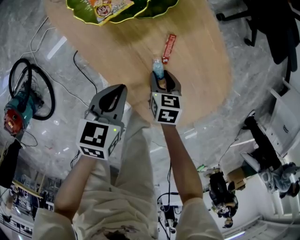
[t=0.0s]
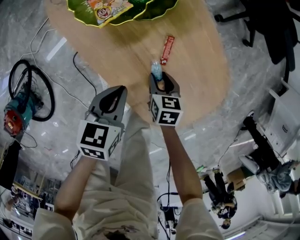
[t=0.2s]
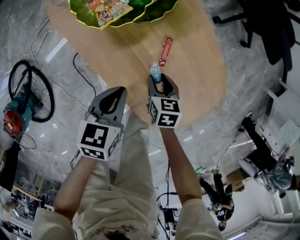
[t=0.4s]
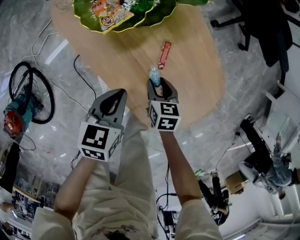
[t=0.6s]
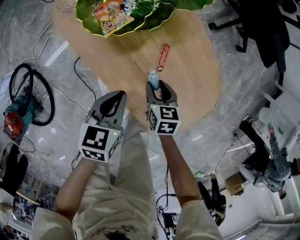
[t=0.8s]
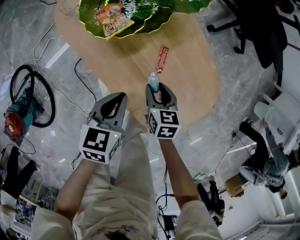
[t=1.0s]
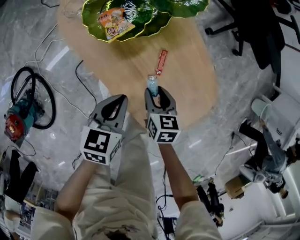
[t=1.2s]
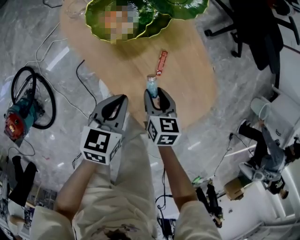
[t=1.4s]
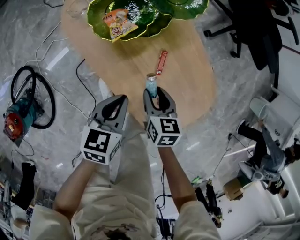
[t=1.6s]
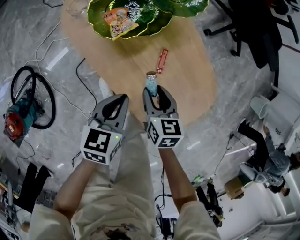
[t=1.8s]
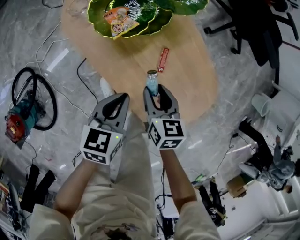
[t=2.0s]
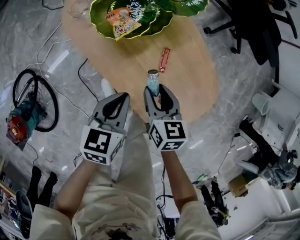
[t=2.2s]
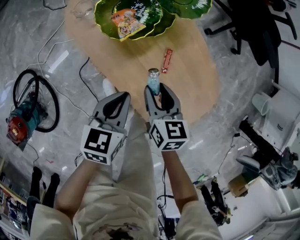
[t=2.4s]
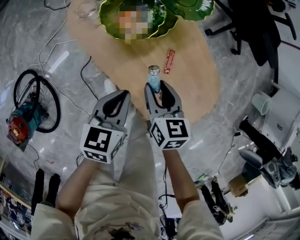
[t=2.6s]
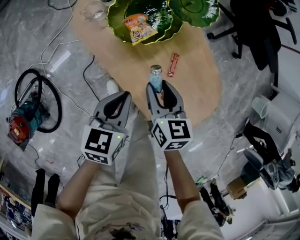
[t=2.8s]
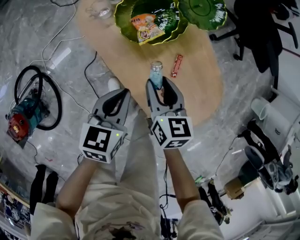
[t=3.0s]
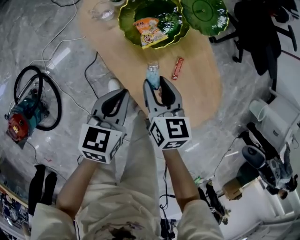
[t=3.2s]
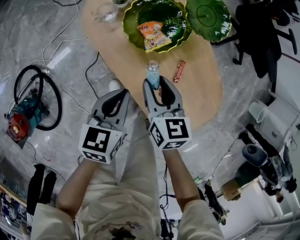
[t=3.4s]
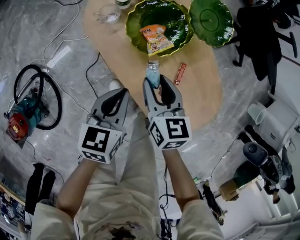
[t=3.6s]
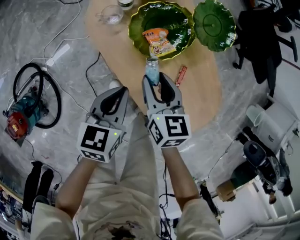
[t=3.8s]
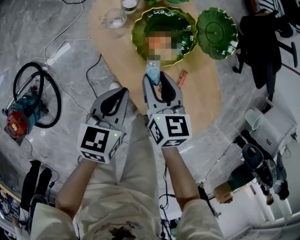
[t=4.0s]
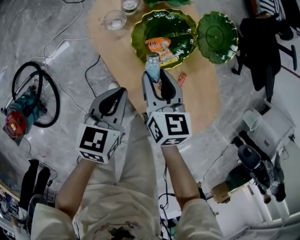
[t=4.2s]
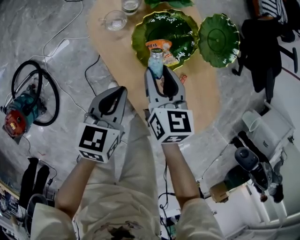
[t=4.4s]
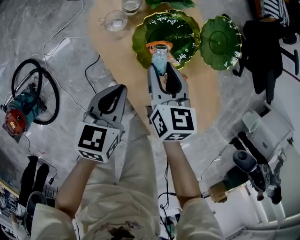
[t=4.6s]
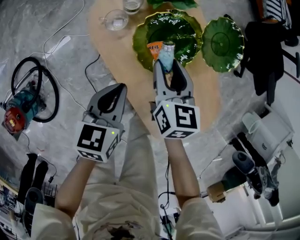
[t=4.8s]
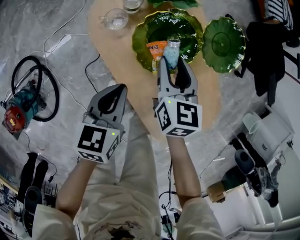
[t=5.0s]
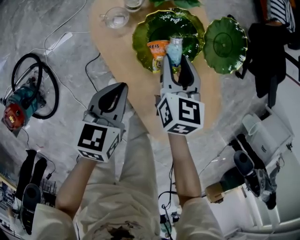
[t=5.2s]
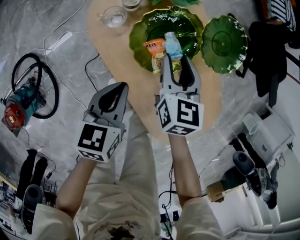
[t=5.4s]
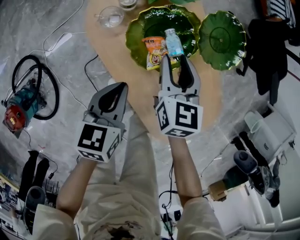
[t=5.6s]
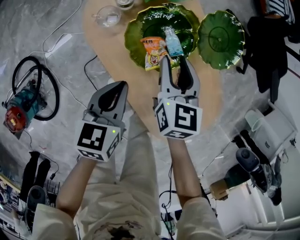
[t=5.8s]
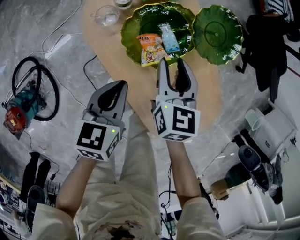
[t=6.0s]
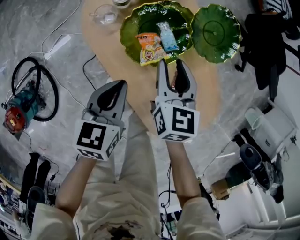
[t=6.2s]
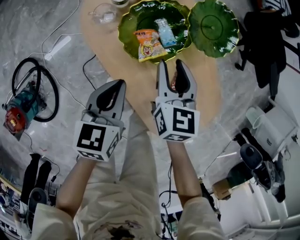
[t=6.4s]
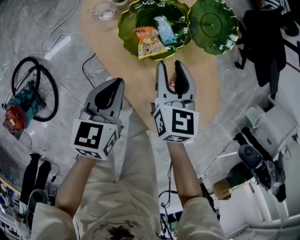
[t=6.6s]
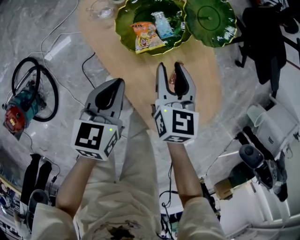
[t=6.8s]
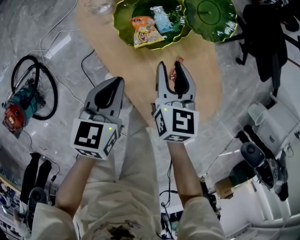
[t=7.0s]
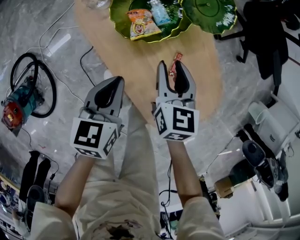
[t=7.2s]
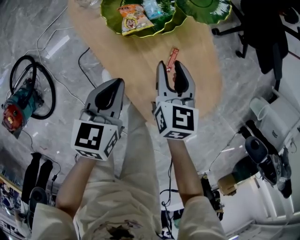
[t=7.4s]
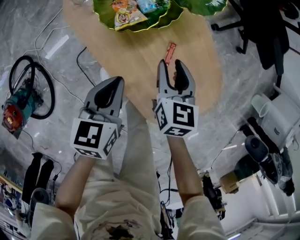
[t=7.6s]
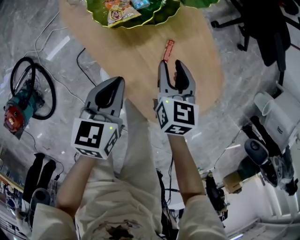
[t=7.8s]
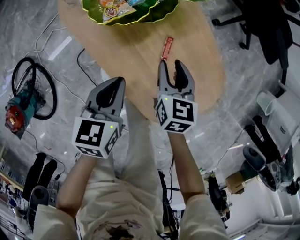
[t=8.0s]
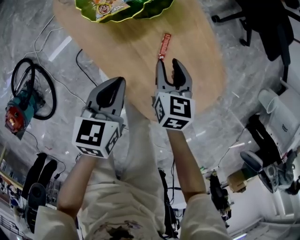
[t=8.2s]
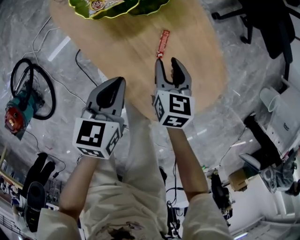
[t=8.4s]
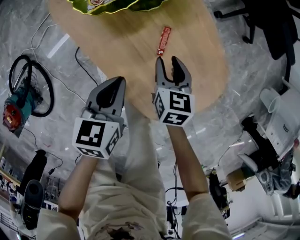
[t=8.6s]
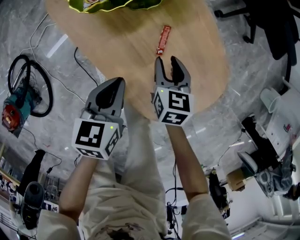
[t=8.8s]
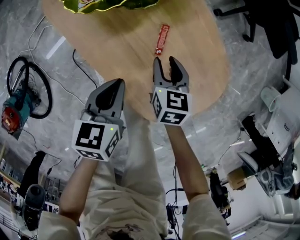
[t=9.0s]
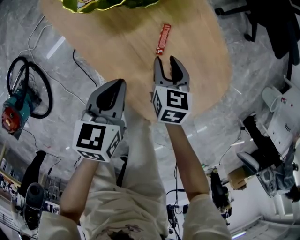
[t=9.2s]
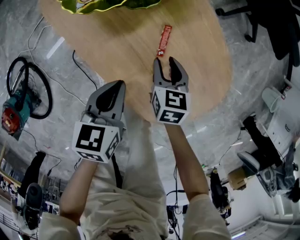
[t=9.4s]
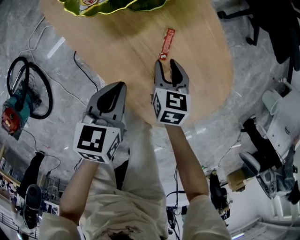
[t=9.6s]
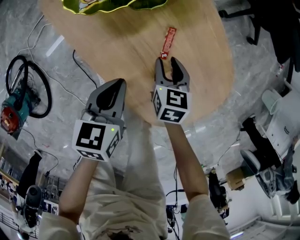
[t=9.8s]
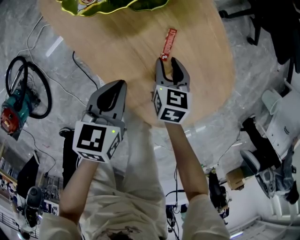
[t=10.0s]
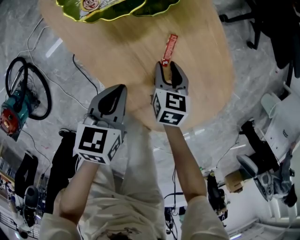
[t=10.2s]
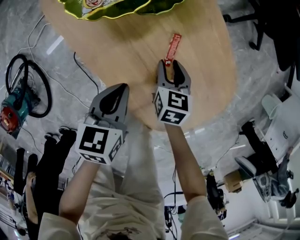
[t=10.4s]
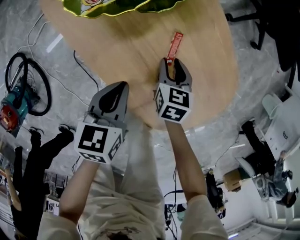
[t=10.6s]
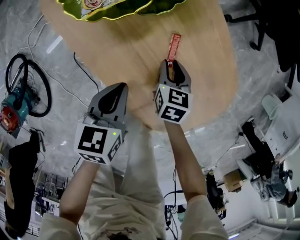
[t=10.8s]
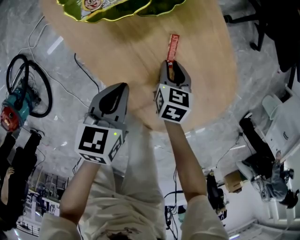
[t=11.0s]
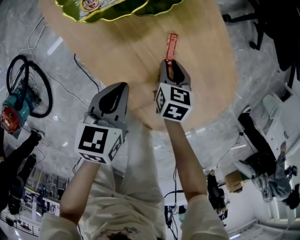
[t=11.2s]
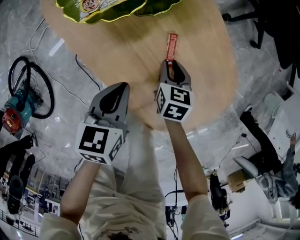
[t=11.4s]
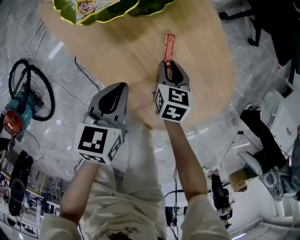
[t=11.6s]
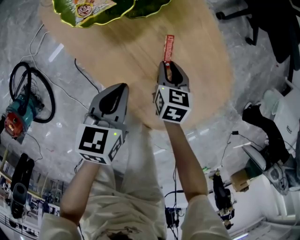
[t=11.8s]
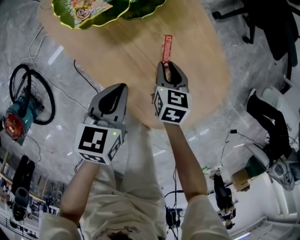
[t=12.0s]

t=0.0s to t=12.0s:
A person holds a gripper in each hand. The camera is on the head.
t=0.0s to t=1.6s: The left gripper heads upward, covering roughly 10 cm. Meanwhile the right gripper moves upward, roughly 15 cm.
t=1.6s to t=3.0s: The right gripper is displaced to the left and upward by some 15 cm, while the left gripper shifts about 10 cm to the left.
t=3.0s to t=4.4s: Both grippers move forward and to the left, roughly 10 cm.
t=4.4s to t=6.0s: The right gripper travels to the right by approximately 5 cm.
t=6.0s to t=7.6s: The grippers both shift to the right and backward by roughly 15 cm.
t=7.6s to t=9.0s: The right gripper shifts some 15 cm downward and to the right; the left gripper heads to the right and downward, covering about 10 cm.
t=9.0s to t=10.4s: The right gripper shifts approximately 5 cm downward.
t=10.4s to t=12.0s: The grippers stay close to where they were, moving slightly.

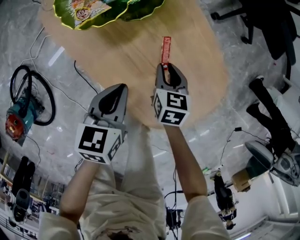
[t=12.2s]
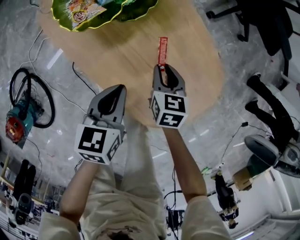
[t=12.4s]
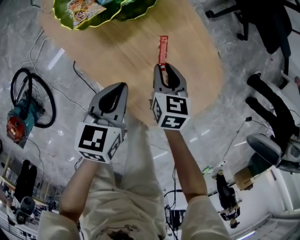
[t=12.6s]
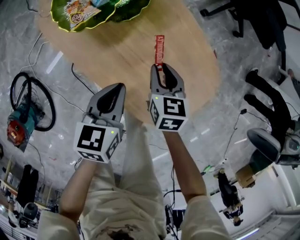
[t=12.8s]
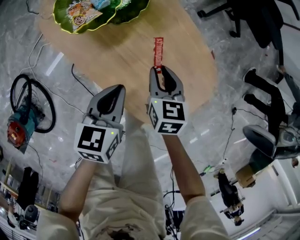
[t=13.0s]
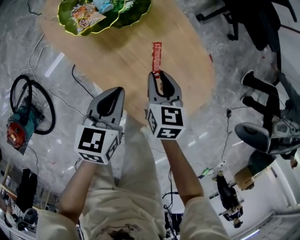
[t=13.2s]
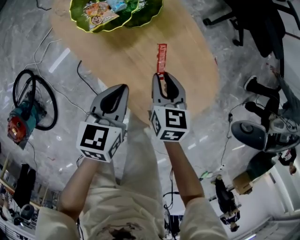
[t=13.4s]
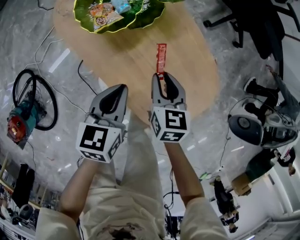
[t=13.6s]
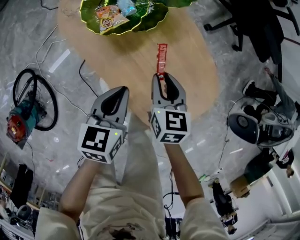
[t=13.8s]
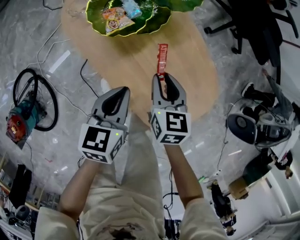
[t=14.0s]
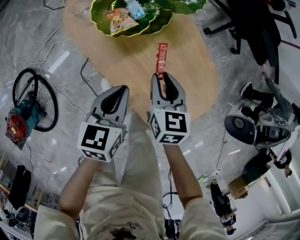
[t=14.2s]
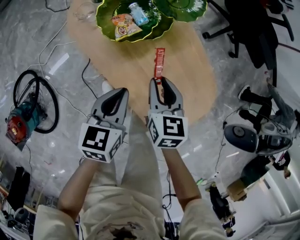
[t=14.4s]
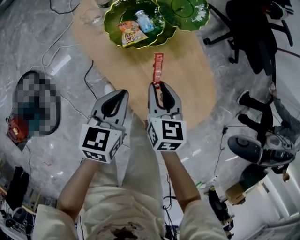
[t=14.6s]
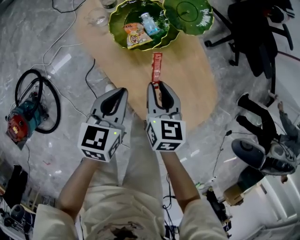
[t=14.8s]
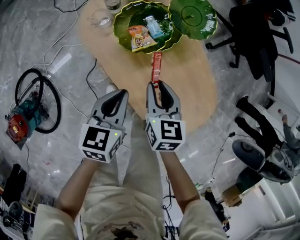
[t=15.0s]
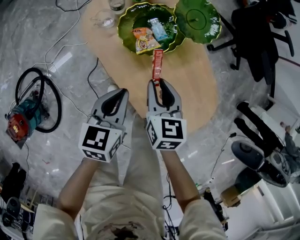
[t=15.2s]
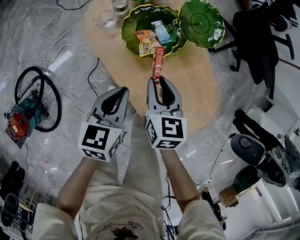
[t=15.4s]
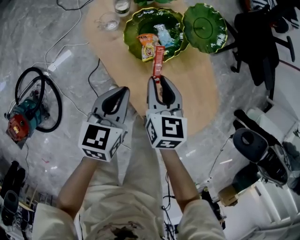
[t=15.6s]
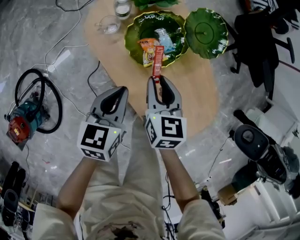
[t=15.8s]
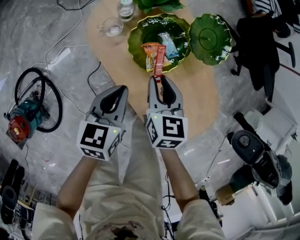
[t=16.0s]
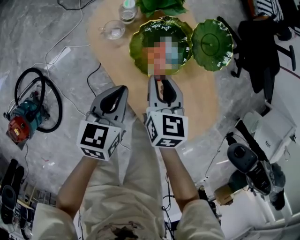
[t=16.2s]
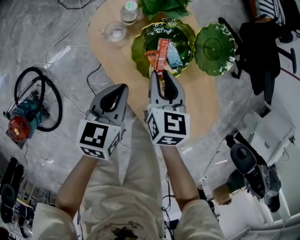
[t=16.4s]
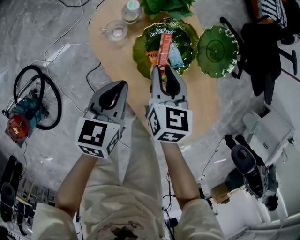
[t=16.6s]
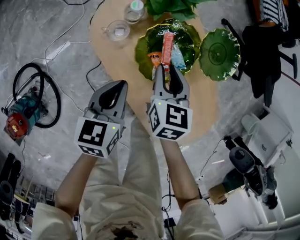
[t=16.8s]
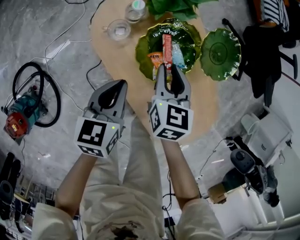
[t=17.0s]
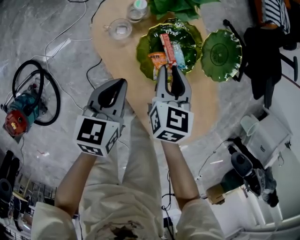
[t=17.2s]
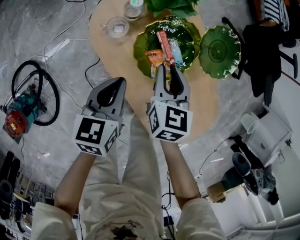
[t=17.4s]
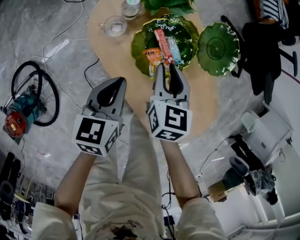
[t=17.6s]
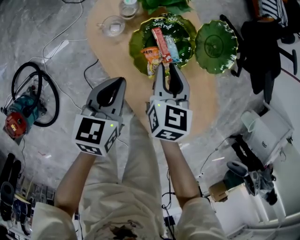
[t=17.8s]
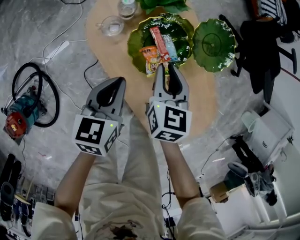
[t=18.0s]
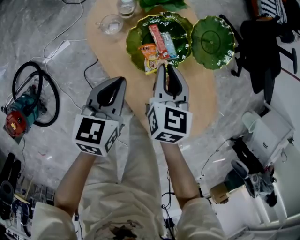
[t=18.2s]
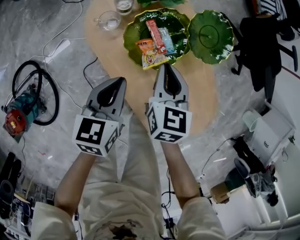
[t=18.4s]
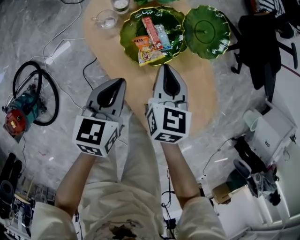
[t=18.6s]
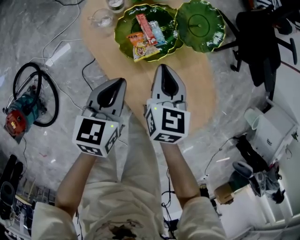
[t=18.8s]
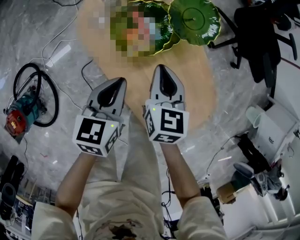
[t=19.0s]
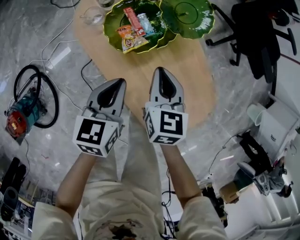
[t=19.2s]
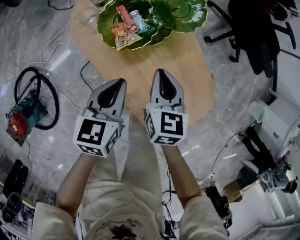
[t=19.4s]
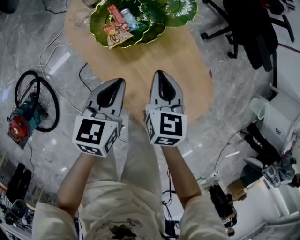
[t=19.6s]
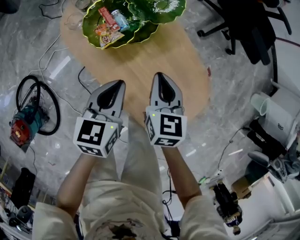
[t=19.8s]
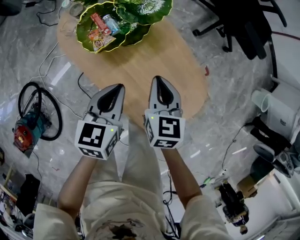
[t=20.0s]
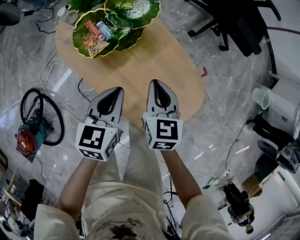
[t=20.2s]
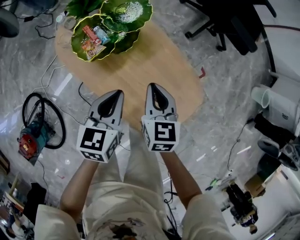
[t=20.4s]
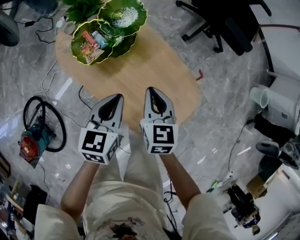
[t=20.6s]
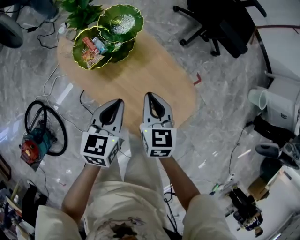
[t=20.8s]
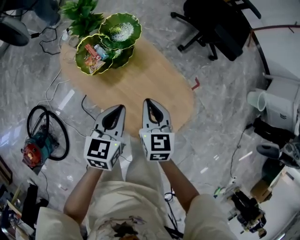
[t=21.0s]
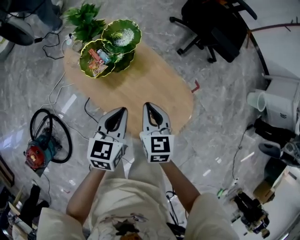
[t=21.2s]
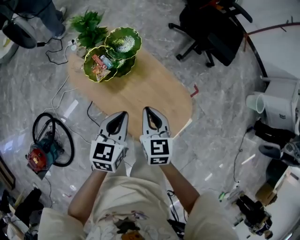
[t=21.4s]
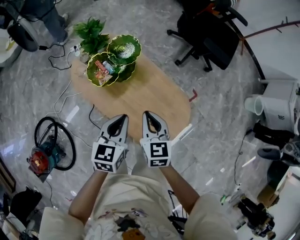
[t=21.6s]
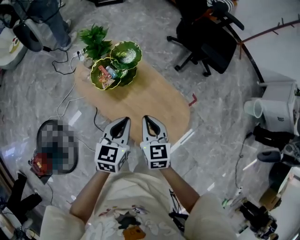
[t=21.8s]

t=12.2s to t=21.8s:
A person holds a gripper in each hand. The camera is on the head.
t=12.2s to t=13.8s: The left gripper moves upward, roughly 5 cm. The right gripper travels upward by some 15 cm.
t=13.8s to t=15.4s: The left gripper shifts roughly 15 cm to the left, while the right gripper travels to the left and upward by about 15 cm.
t=15.4s to t=17.0s: The grippers both shift forward and to the left by some 15 cm.
t=17.0s to t=18.6s: The two grippers go some 5 cm to the right. The right gripper closes up.
t=18.6s to t=20.2s: The right gripper moves to the right and backward, about 20 cm, while the left gripper goes roughly 20 cm to the right.
t=20.2s to t=21.8s: The right gripper shifts some 15 cm upward and backward. The left gripper travels upward by some 15 cm.

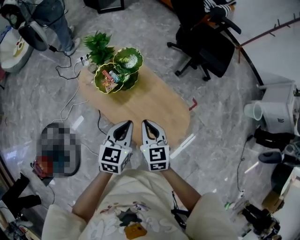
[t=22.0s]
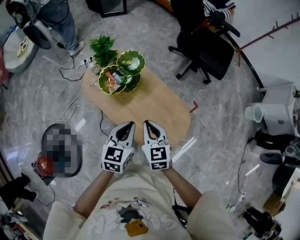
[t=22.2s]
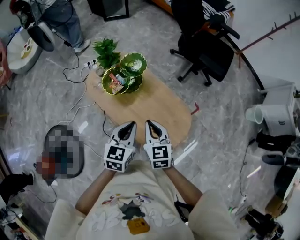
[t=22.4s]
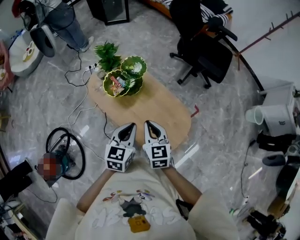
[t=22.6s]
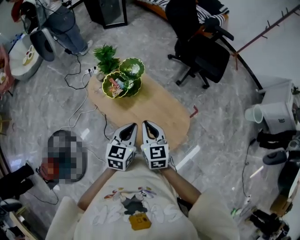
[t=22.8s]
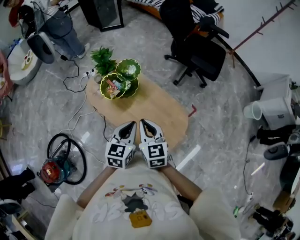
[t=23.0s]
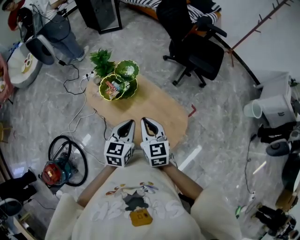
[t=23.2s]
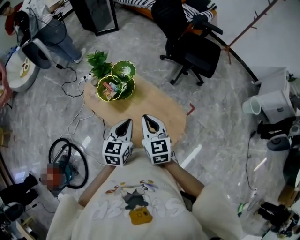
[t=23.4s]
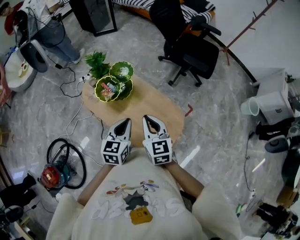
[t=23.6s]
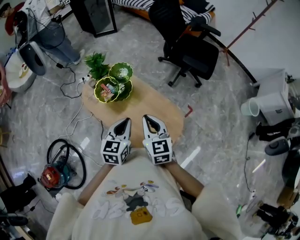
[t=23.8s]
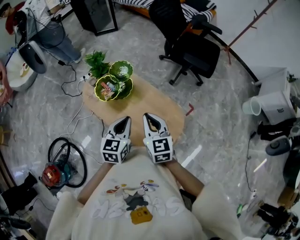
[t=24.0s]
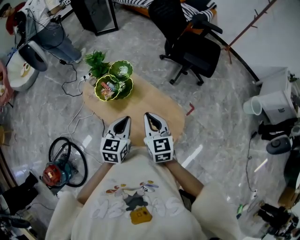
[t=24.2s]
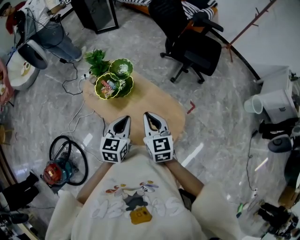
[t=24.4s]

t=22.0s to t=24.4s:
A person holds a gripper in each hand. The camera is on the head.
t=22.0s to t=23.2s: The left gripper goes about 5 cm upward; the right gripper travels upward by about 10 cm.
t=23.2s to t=24.4s: The right gripper travels to the right by some 5 cm.
